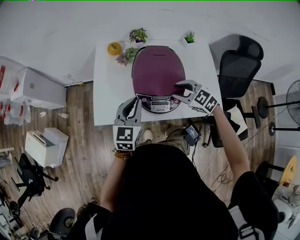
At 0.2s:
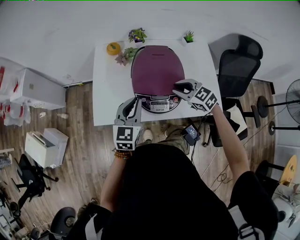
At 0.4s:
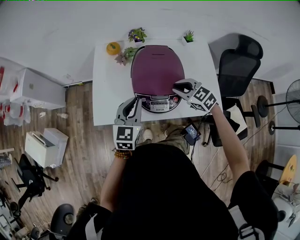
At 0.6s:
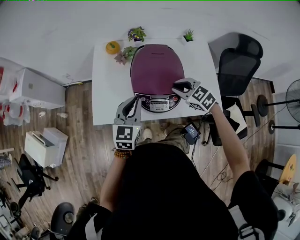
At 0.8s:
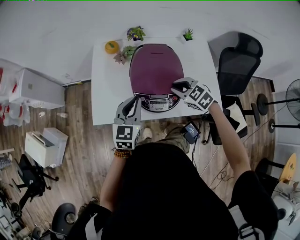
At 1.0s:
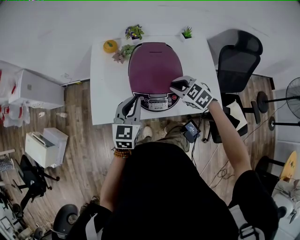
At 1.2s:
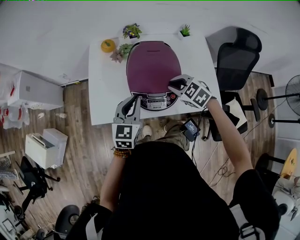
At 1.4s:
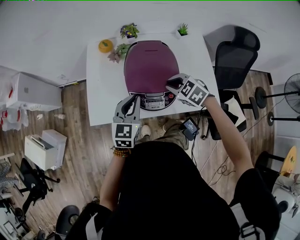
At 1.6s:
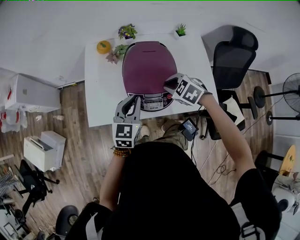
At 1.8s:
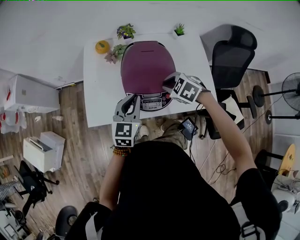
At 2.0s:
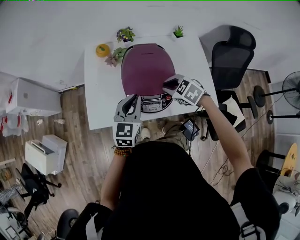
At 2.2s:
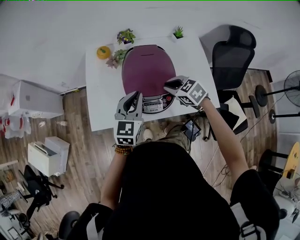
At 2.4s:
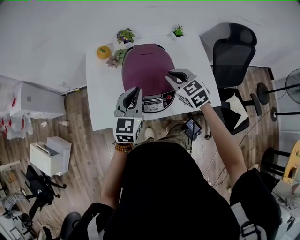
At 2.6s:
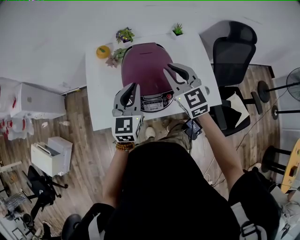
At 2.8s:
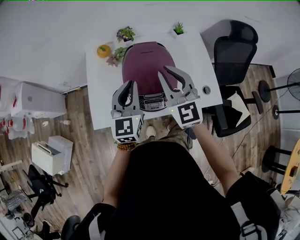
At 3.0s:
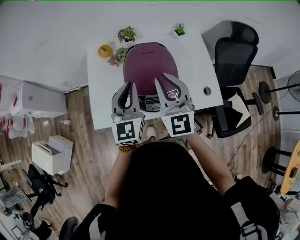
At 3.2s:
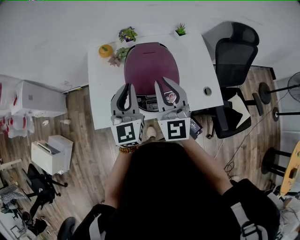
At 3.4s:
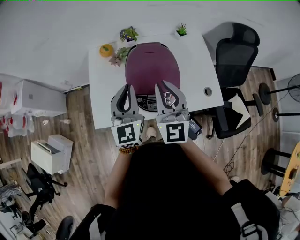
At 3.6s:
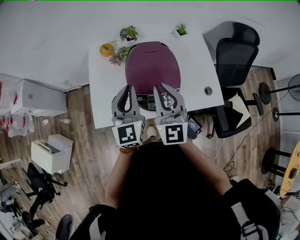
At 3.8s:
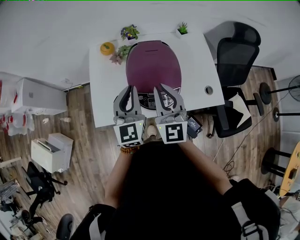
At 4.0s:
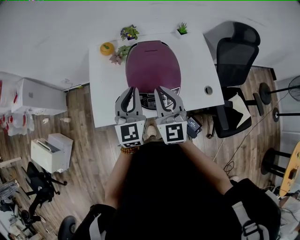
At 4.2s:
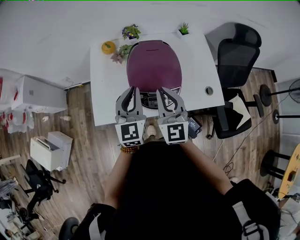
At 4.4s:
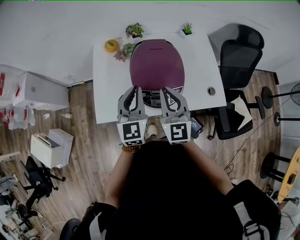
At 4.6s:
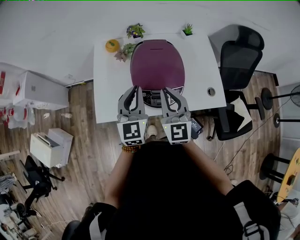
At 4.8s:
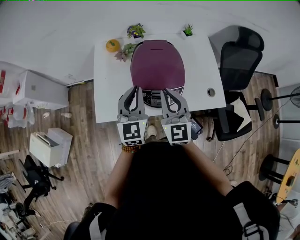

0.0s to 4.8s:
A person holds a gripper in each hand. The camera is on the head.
0.0s to 1.6s: The right gripper rotates about 20 degrees, and closes its fingers.
1.6s to 3.2s: The right gripper travels upward by some 15 cm, and angles its fingers upward, by about 60 degrees; the left gripper is displaced upward by roughly 10 cm, and swivels roughly 20 degrees.
3.2s to 4.8s: The right gripper heads downward, covering approximately 5 cm.

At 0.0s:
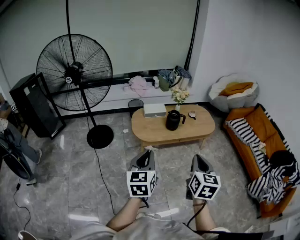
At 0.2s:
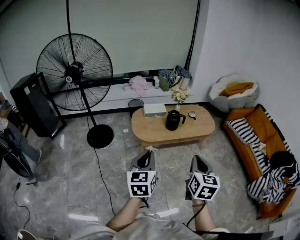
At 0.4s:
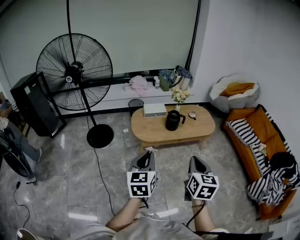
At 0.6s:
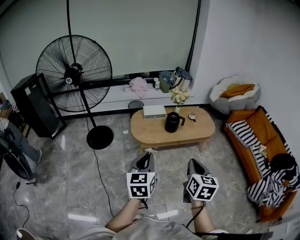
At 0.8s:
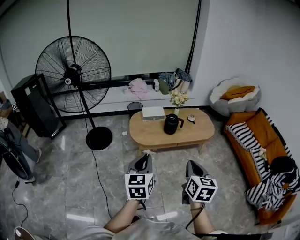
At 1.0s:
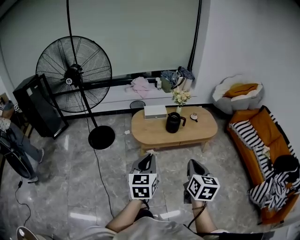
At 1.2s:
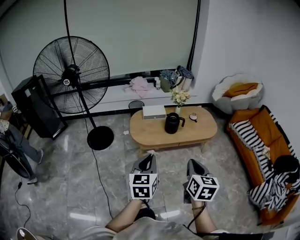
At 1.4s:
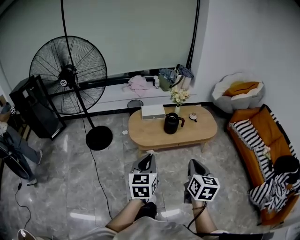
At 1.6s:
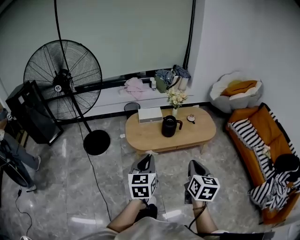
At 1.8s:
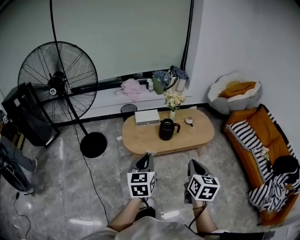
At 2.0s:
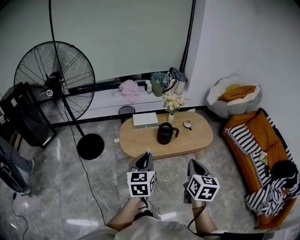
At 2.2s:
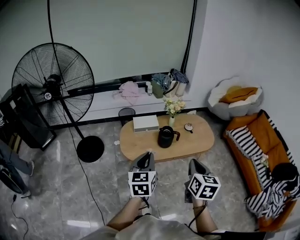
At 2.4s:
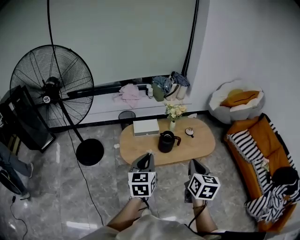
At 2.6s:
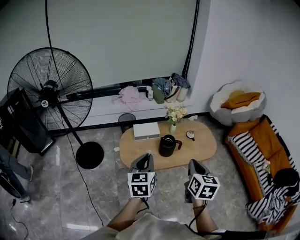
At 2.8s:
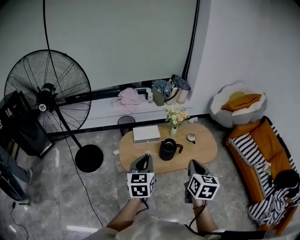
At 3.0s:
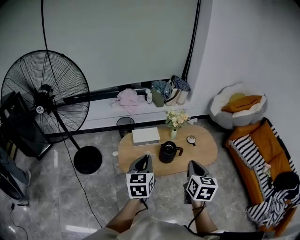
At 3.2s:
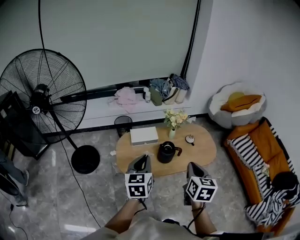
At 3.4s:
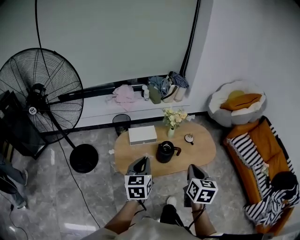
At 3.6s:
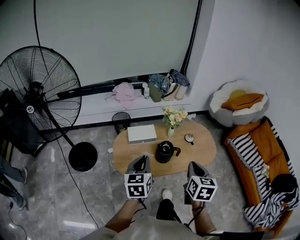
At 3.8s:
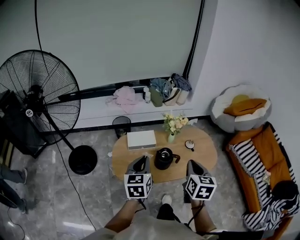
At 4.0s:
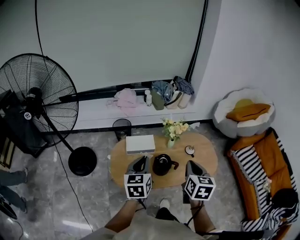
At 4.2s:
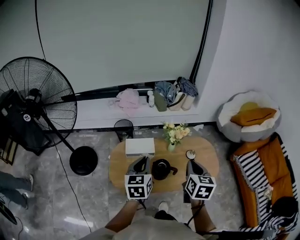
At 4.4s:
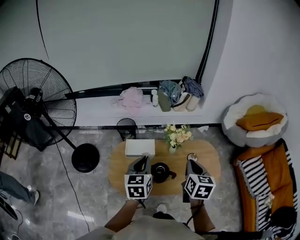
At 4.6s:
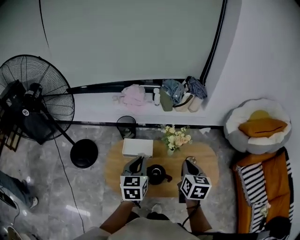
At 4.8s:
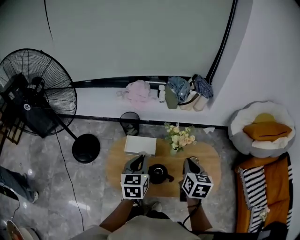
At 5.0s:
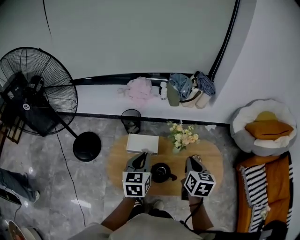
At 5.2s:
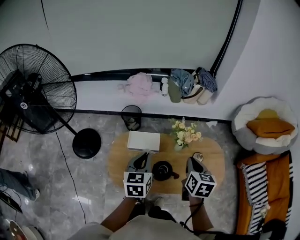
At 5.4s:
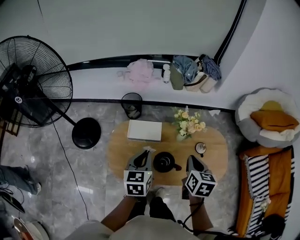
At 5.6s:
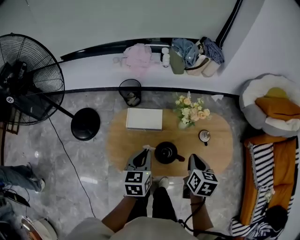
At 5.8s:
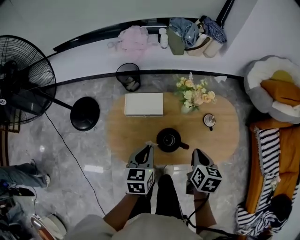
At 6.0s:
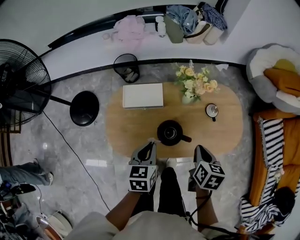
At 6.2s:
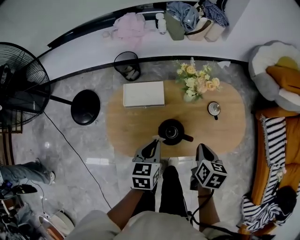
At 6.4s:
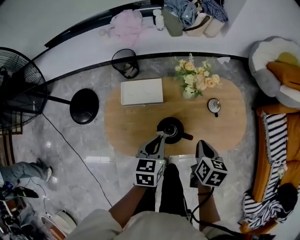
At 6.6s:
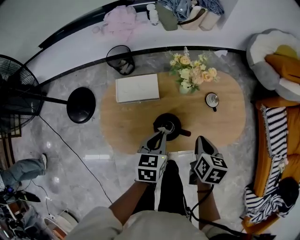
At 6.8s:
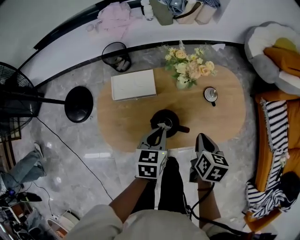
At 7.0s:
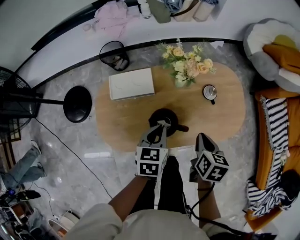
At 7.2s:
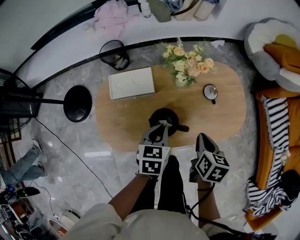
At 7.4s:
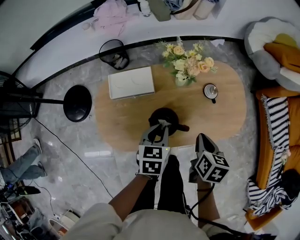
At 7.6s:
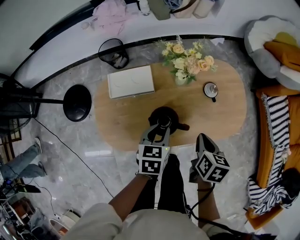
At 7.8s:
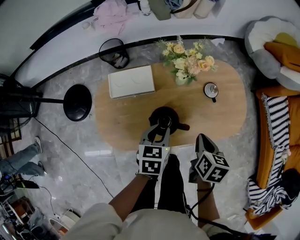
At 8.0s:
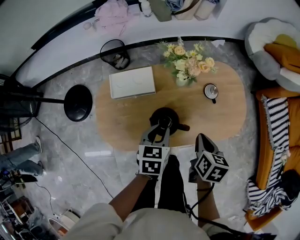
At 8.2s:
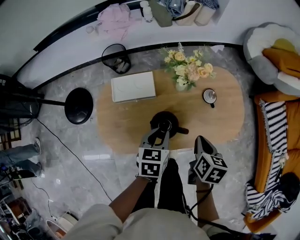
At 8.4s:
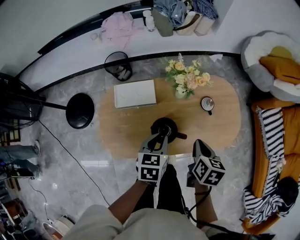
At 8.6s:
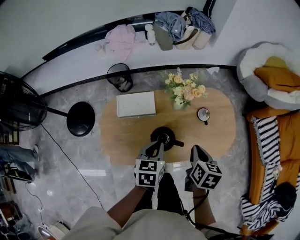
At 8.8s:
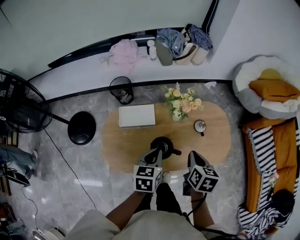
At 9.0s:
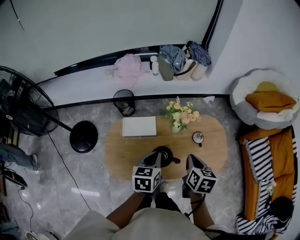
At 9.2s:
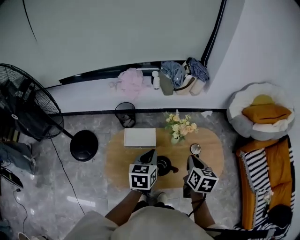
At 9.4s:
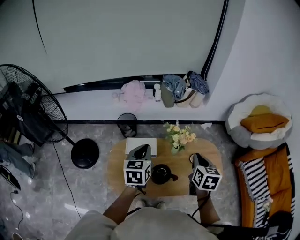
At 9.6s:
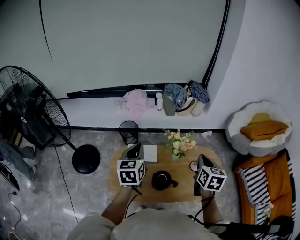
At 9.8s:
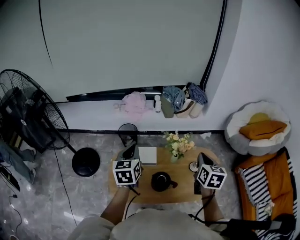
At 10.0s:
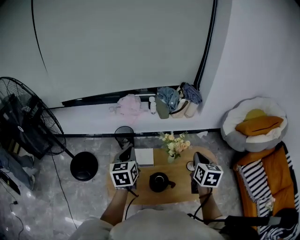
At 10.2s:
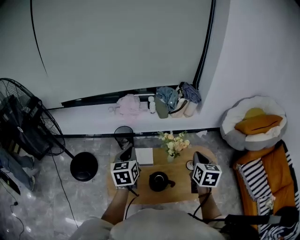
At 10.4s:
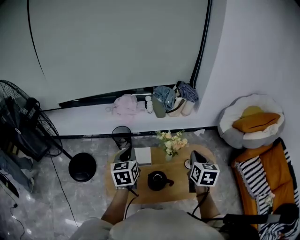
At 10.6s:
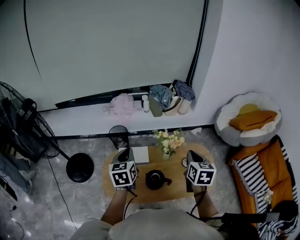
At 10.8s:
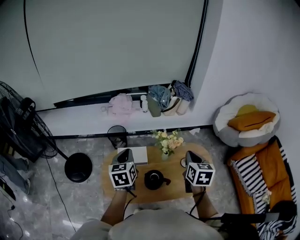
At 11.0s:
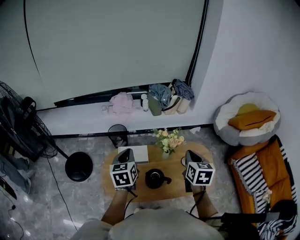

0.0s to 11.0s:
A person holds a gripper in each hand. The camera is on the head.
0.0s to 1.6s: The left gripper heads forward and to the right, covering about 10 cm, while the right gripper is displaced forward and downward by about 10 cm.
1.6s to 3.2s: Both grippers travel together forward, approximately 25 cm.
3.2s to 4.8s: The two grippers go approximately 25 cm forward.
4.8s to 6.2s: The right gripper is displaced downward and backward by approximately 20 cm, and changes its angle by roughly 30 degrees. The left gripper shifts about 15 cm downward, and turns by approximately 20 degrees.
6.2s to 7.8s: The left gripper is displaced to the right and downward by about 10 cm, and opens.
7.8s to 9.4s: The right gripper goes some 25 cm upward and forward, and rotates some 30 degrees. Meanwhile the left gripper travels upward and to the left by roughly 25 cm, swivels roughly 30 degrees, and closes.

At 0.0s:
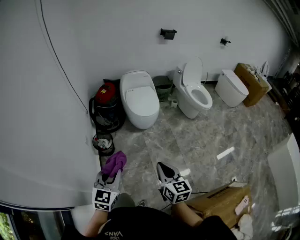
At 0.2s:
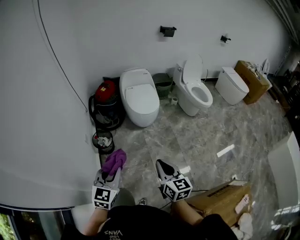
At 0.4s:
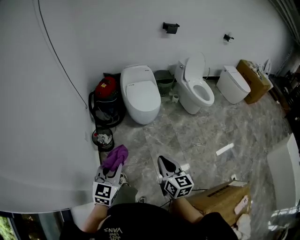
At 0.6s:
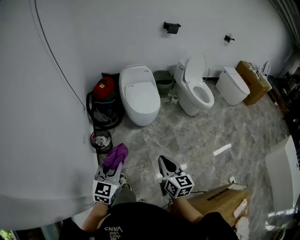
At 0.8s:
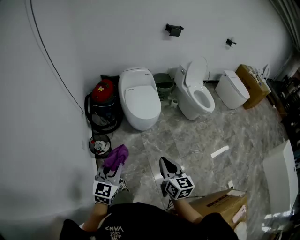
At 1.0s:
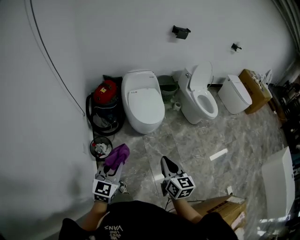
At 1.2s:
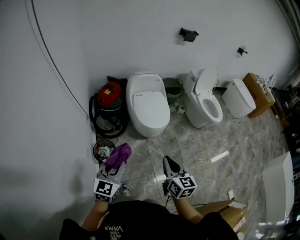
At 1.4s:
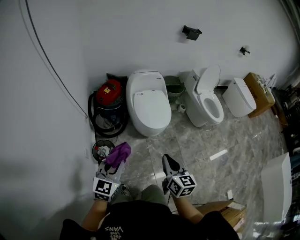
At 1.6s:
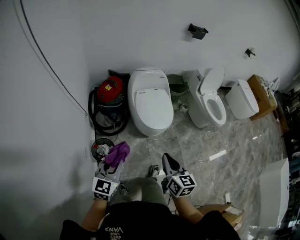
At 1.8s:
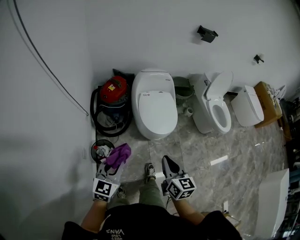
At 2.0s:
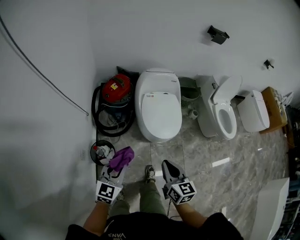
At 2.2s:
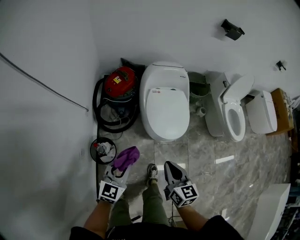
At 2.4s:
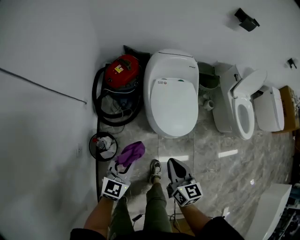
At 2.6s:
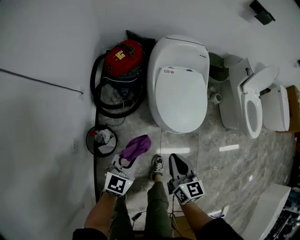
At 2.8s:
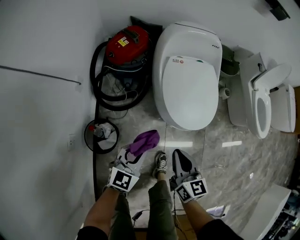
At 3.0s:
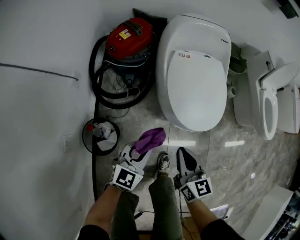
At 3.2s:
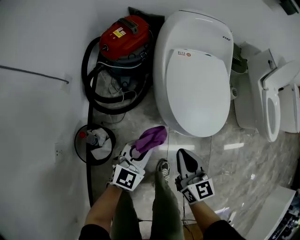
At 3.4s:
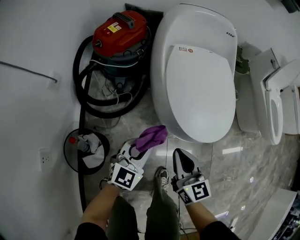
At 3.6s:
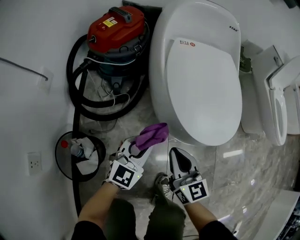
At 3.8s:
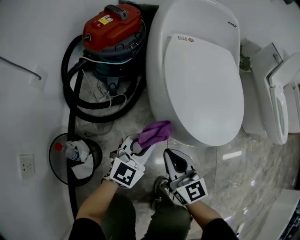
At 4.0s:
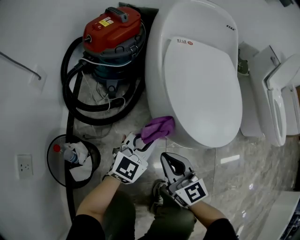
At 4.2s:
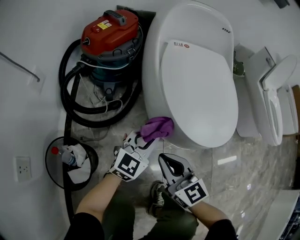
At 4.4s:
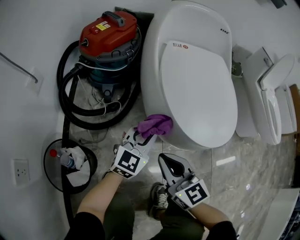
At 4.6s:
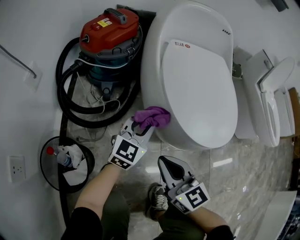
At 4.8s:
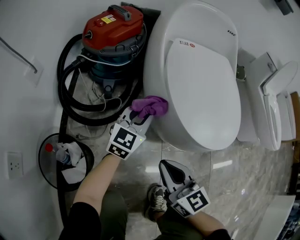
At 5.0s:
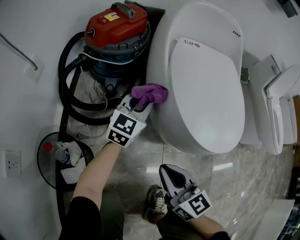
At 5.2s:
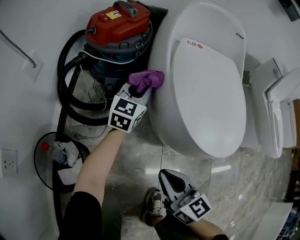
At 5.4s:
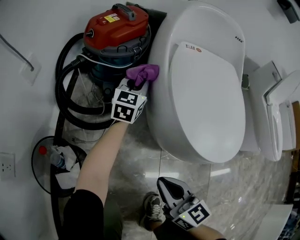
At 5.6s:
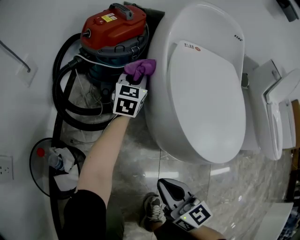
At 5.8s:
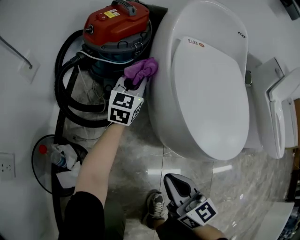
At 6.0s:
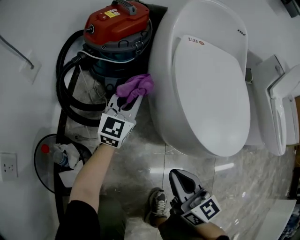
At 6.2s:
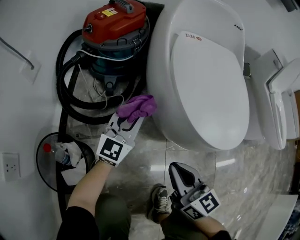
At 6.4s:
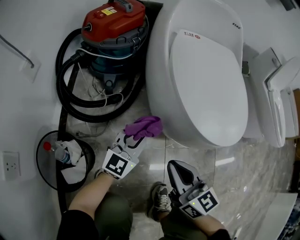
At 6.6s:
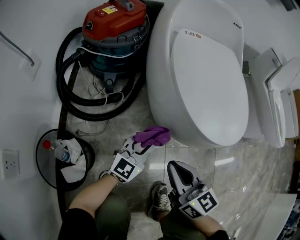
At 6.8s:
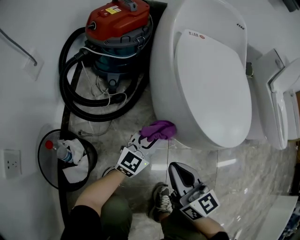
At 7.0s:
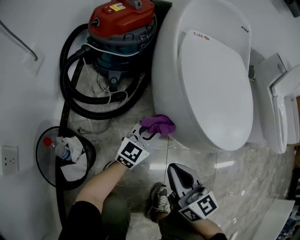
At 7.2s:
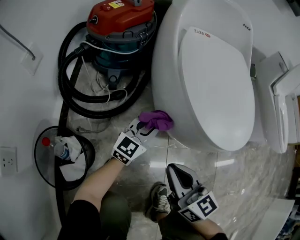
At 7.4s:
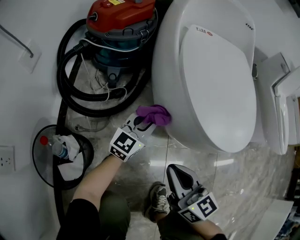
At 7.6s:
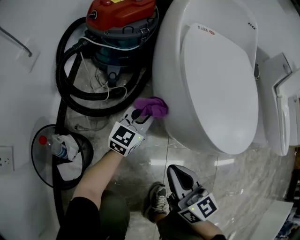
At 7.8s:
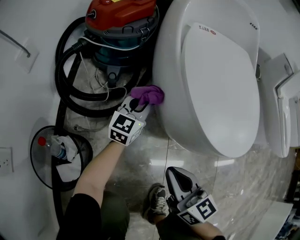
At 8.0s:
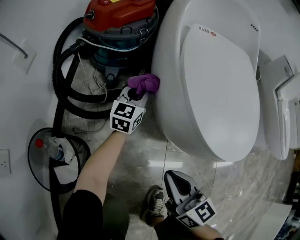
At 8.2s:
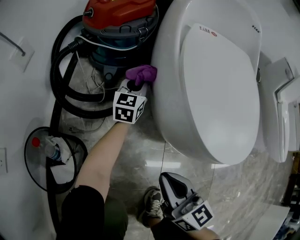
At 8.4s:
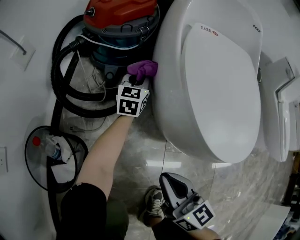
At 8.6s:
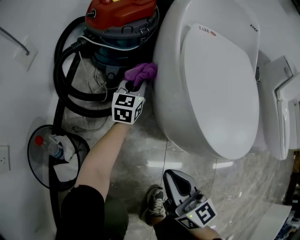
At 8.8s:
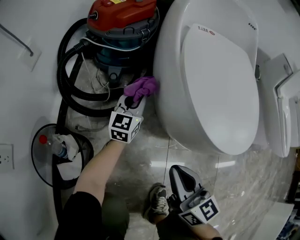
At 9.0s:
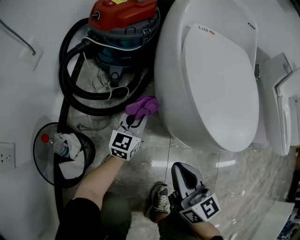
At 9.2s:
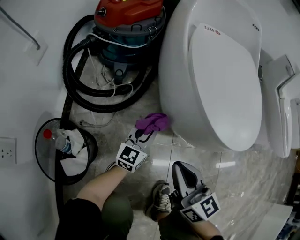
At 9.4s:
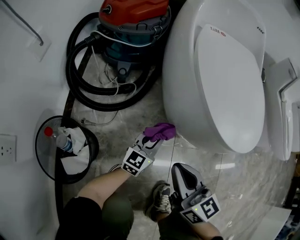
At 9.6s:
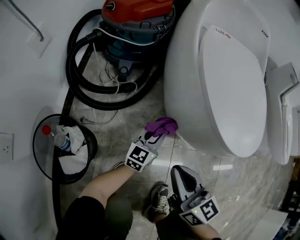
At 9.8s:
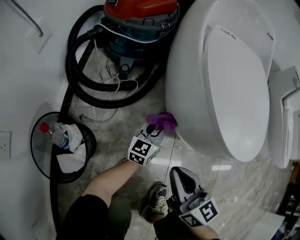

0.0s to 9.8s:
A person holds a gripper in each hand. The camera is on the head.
0.0s to 1.4s: Both grippers travel together forward, some 30 cm.
1.4s to 2.8s: The two grippers go roughly 40 cm downward and forward.
2.8s to 4.2s: The left gripper is displaced downward and forward by roughly 30 cm. The right gripper travels downward by roughly 25 cm, and swivels roughly 20 degrees.
4.2s to 5.6s: The left gripper travels forward by roughly 25 cm, and turns by approximately 30 degrees.
5.6s to 7.0s: The left gripper travels backward by approximately 25 cm, and turns by about 30 degrees.
7.0s to 8.4s: The left gripper is displaced forward by roughly 20 cm, and changes its angle by about 30 degrees.
8.4s to 9.8s: The left gripper heads backward, covering approximately 20 cm.
